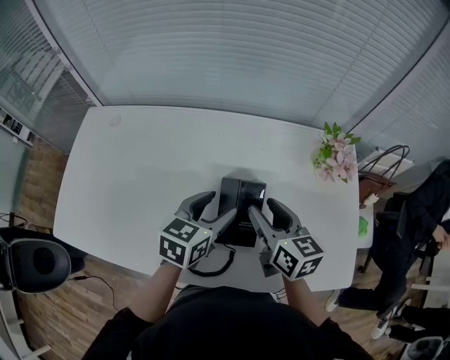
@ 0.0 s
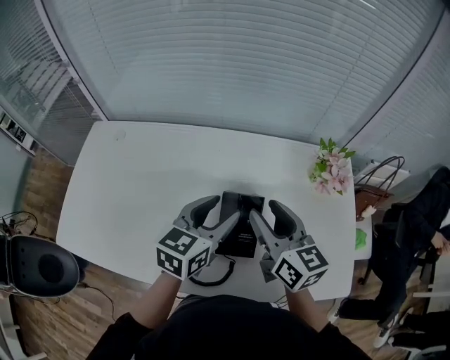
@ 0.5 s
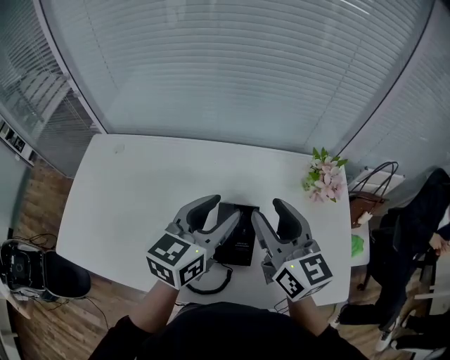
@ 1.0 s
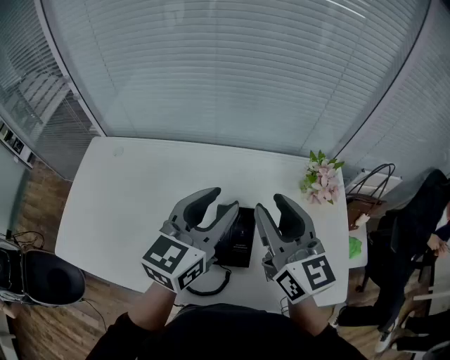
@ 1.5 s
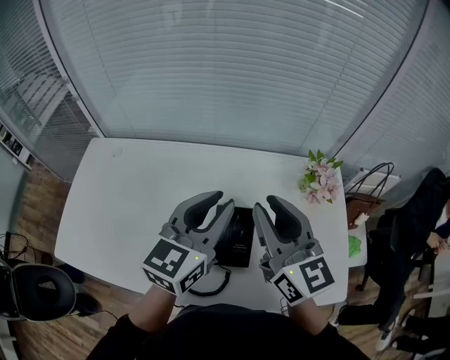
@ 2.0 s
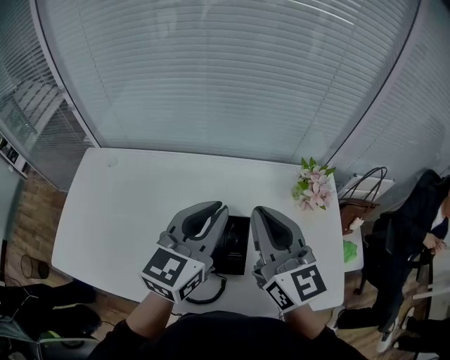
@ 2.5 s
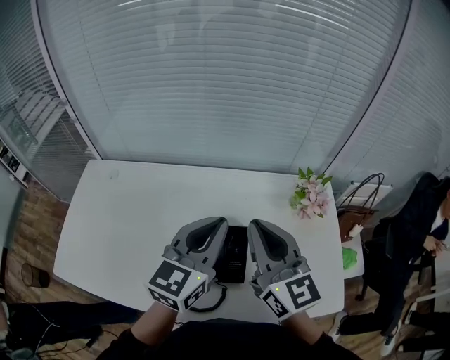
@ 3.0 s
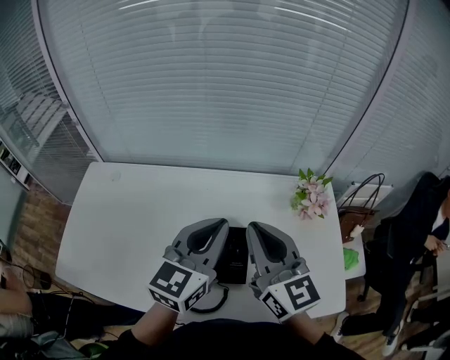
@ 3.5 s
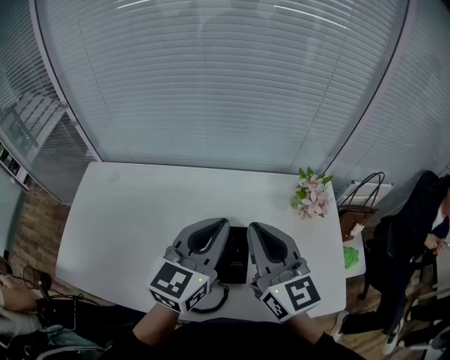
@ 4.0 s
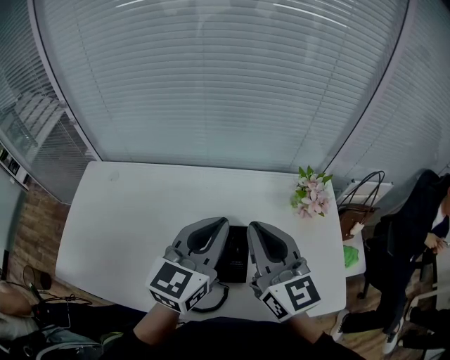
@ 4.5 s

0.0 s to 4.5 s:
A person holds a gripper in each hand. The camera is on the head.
0.0 to 2.0 s: Both grippers move upward, roughly 20 cm. The right gripper changes its angle by some 30 degrees, and closes, while the left gripper turns by some 30 degrees, and closes.
2.0 to 4.5 s: The right gripper closes up.

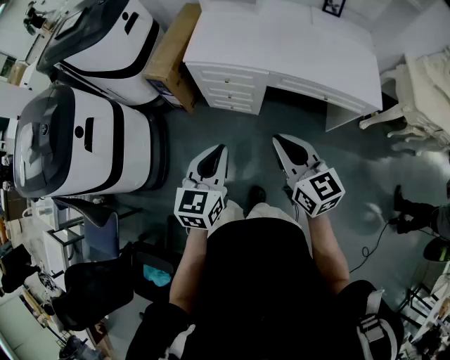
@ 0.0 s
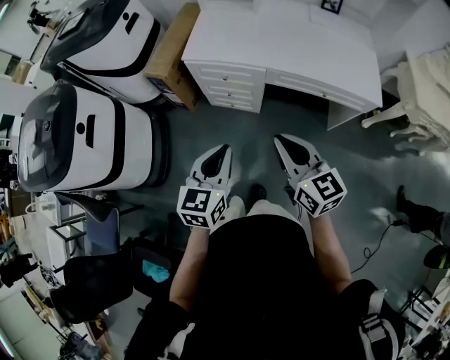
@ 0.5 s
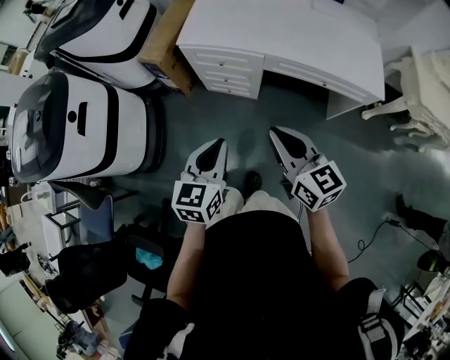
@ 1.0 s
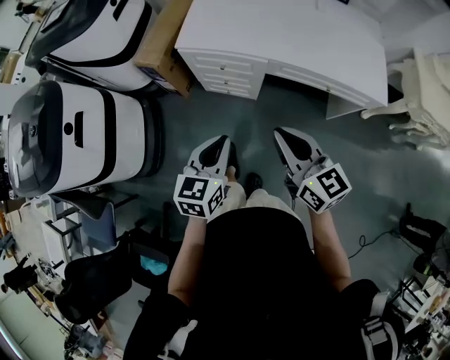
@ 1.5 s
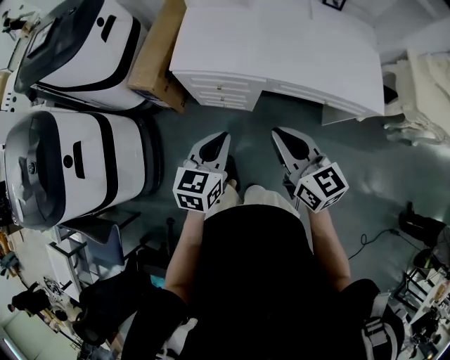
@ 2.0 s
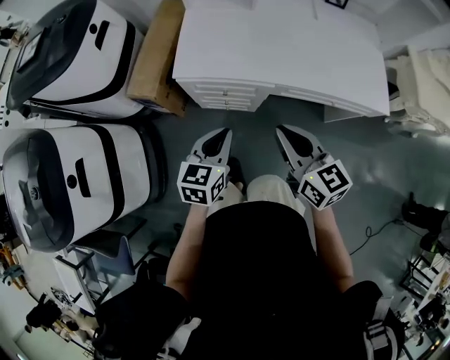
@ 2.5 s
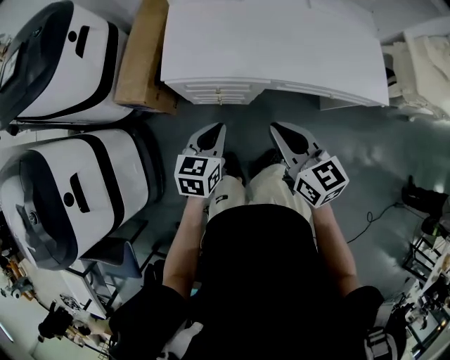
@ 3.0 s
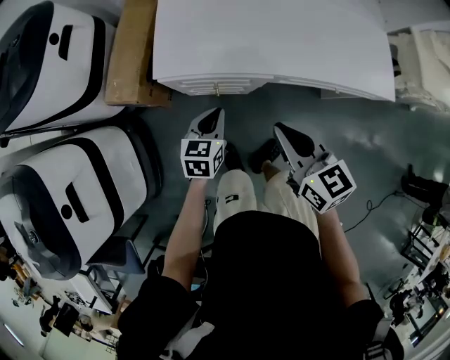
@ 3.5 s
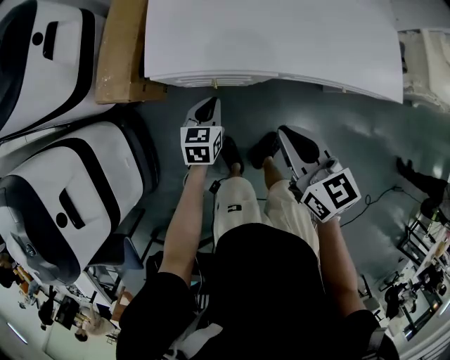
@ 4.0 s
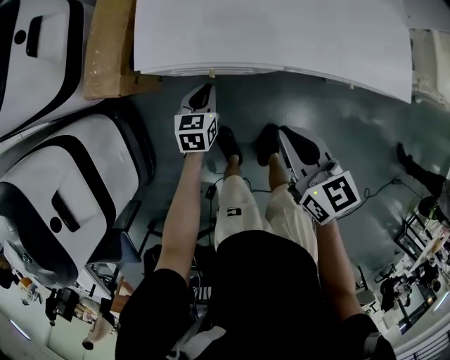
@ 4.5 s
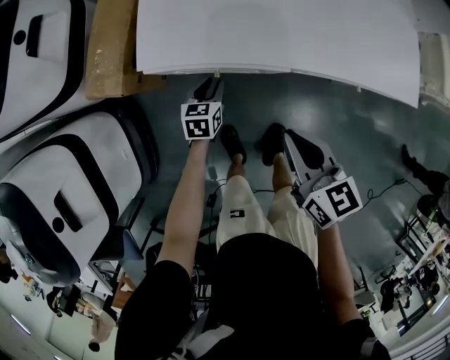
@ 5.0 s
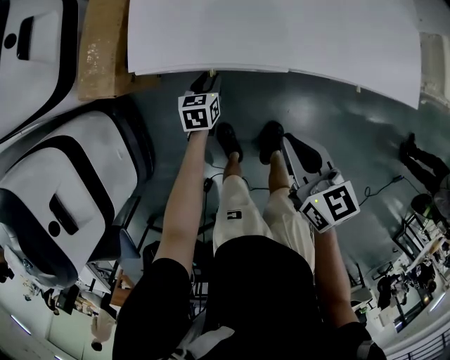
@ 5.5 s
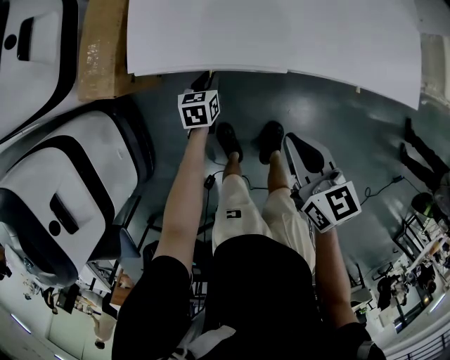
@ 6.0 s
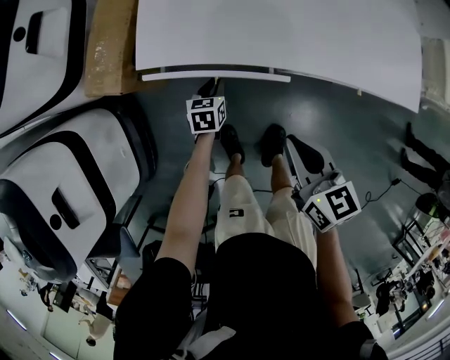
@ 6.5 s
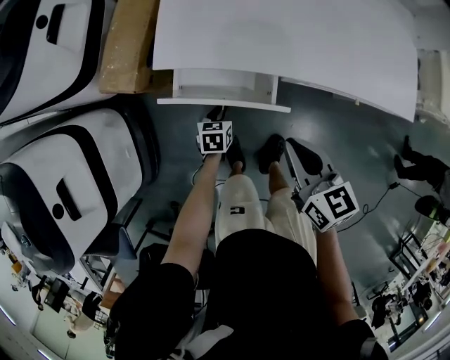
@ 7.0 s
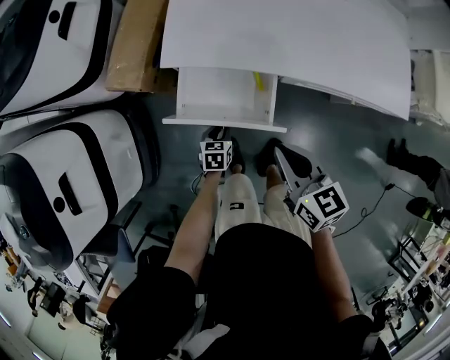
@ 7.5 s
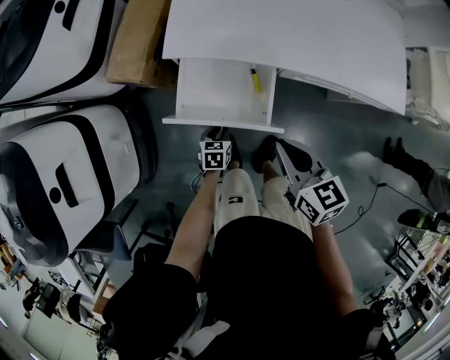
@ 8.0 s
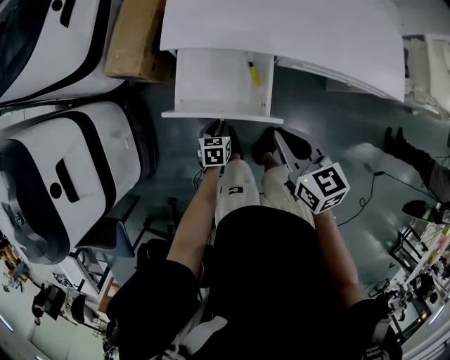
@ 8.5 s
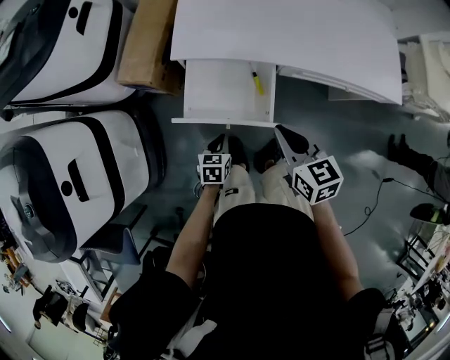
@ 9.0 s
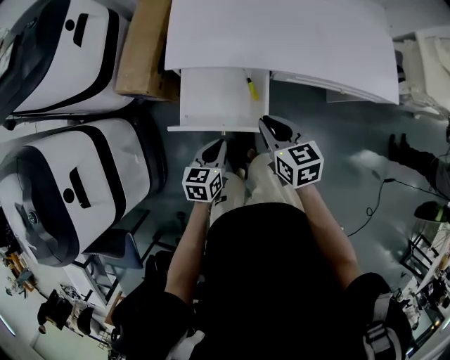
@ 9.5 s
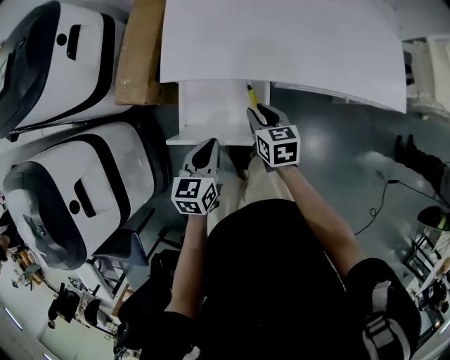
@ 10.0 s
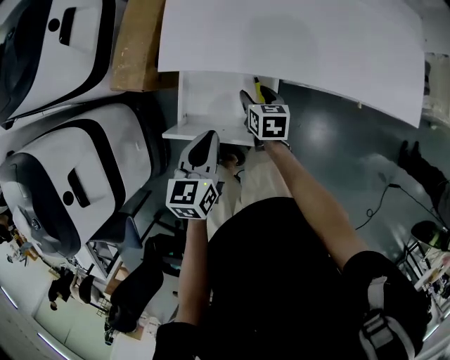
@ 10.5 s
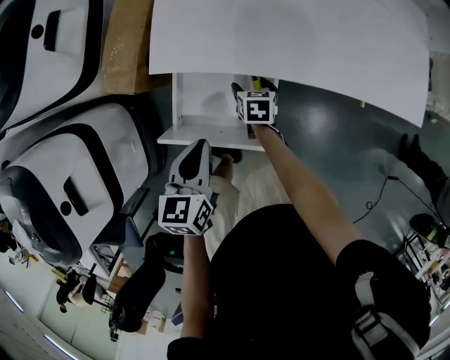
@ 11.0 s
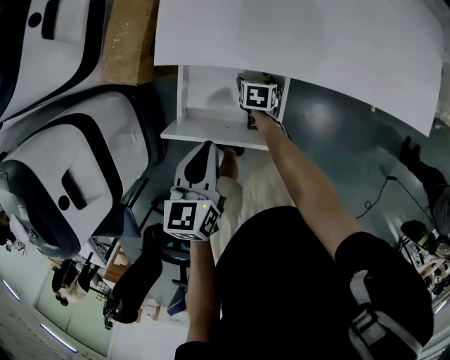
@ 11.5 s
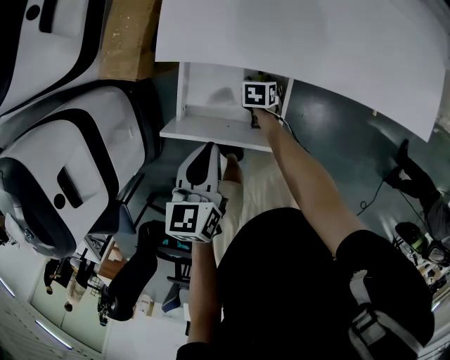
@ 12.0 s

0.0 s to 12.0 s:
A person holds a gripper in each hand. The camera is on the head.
0.0 to 2.0 s: Both grippers move forward, roughly 15 cm.
2.0 to 4.0 s: The right gripper goes about 20 cm forward, downward and to the left, while the left gripper travels downward and forward by roughly 30 cm.
4.0 to 6.0 s: The right gripper is displaced downward by approximately 10 cm; the left gripper travels downward and forward by approximately 15 cm.
6.0 to 8.0 s: The left gripper moves backward, approximately 20 cm. Meanwhile the right gripper shifts some 10 cm backward and to the left.
8.0 to 10.0 s: The right gripper is displaced forward and downward by about 15 cm, while the left gripper is displaced upward by approximately 25 cm.
10.0 to 12.0 s: The right gripper shifts approximately 25 cm downward, rotates about 30 degrees, and opens up.

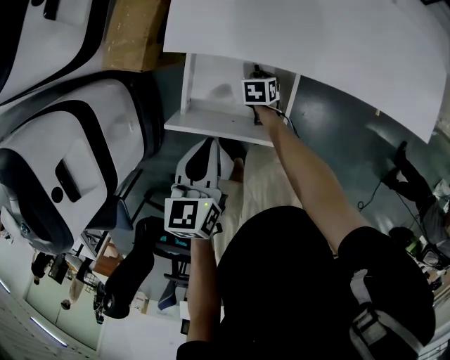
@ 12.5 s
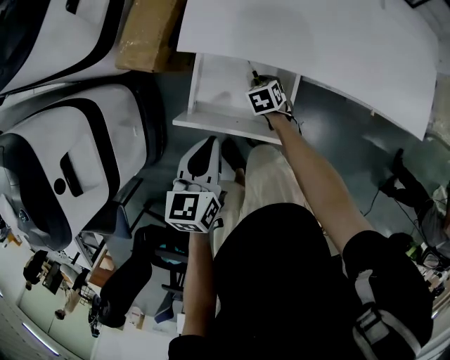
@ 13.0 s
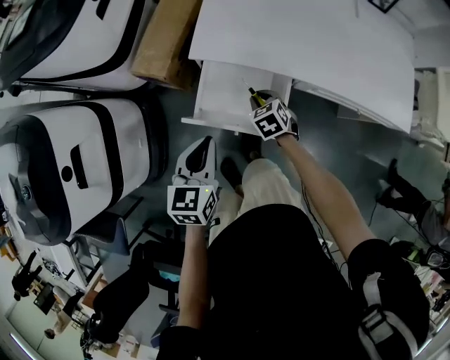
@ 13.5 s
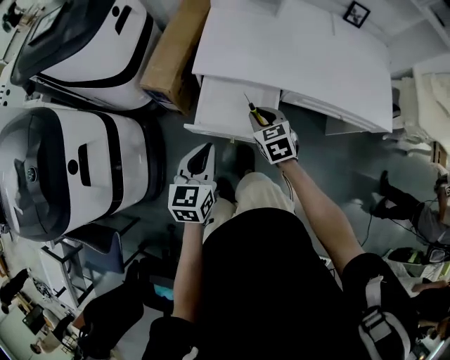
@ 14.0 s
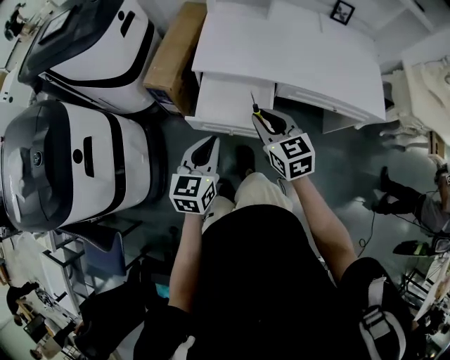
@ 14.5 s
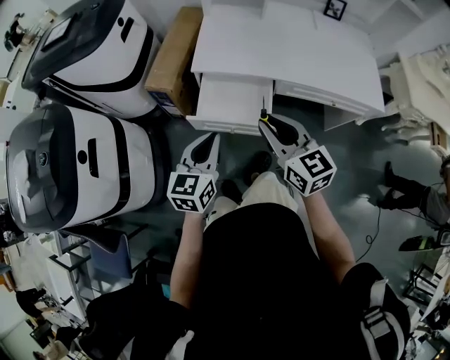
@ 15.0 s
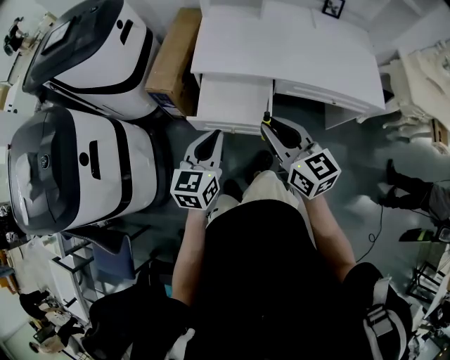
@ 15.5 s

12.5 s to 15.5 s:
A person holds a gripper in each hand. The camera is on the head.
12.5 to 14.0 s: The left gripper travels backward and upward by roughly 20 cm, and rotates about 20 degrees, while the right gripper goes about 40 cm upward and backward, and rotates roughly 40 degrees.
14.0 to 15.5 s: The left gripper goes some 10 cm upward and backward; the right gripper shifts approximately 25 cm upward and backward, and angles its fingers upward, by roughly 30 degrees.

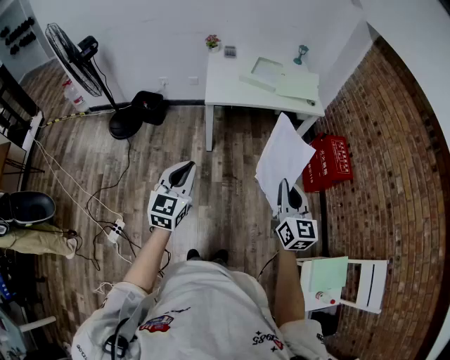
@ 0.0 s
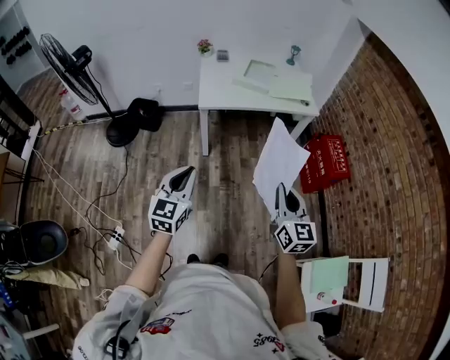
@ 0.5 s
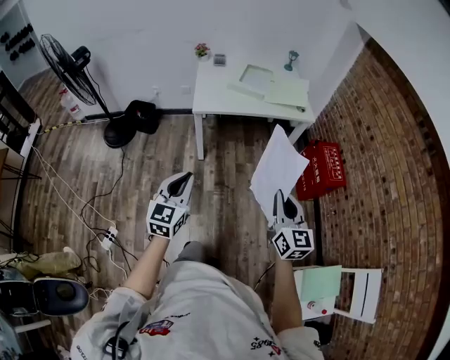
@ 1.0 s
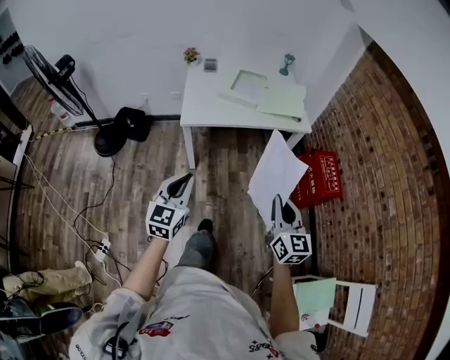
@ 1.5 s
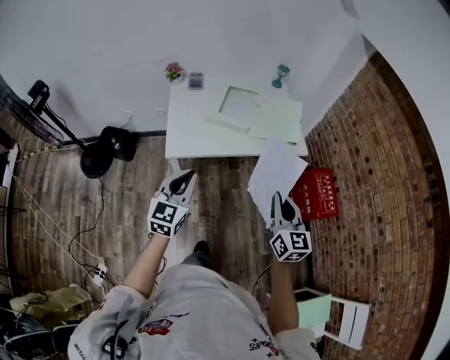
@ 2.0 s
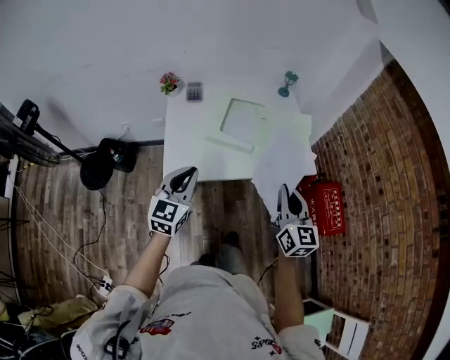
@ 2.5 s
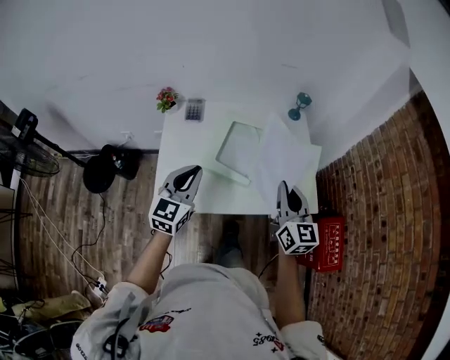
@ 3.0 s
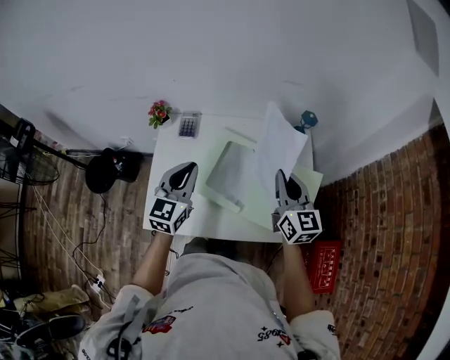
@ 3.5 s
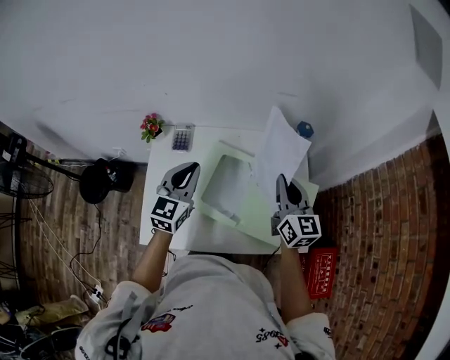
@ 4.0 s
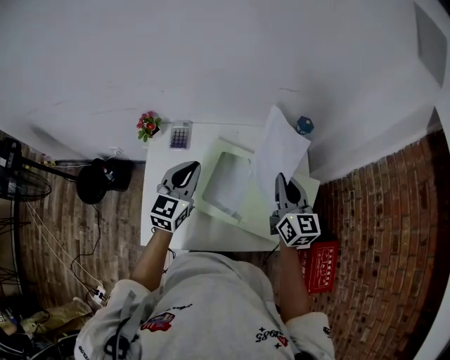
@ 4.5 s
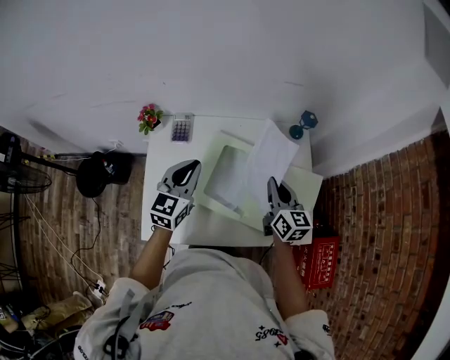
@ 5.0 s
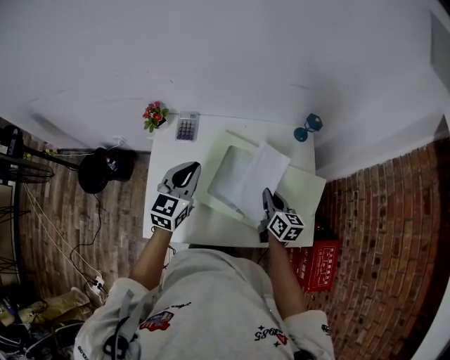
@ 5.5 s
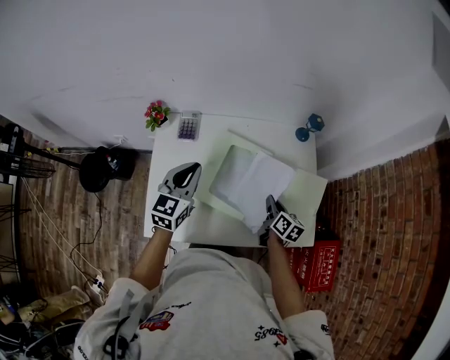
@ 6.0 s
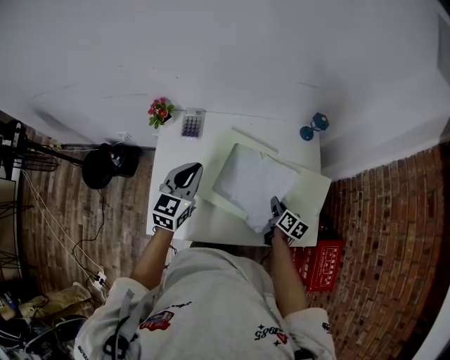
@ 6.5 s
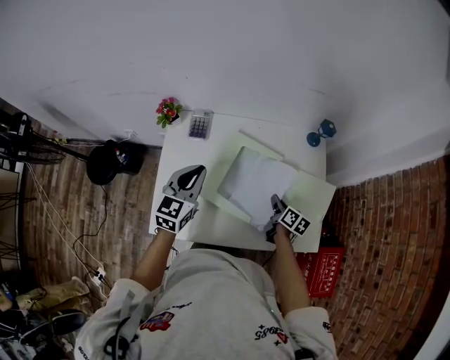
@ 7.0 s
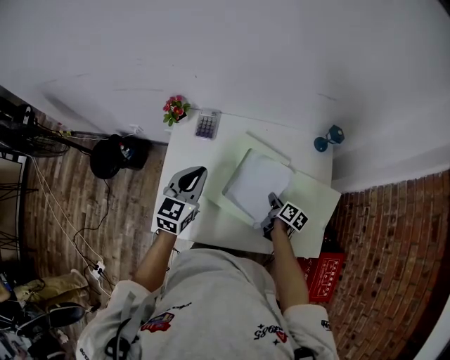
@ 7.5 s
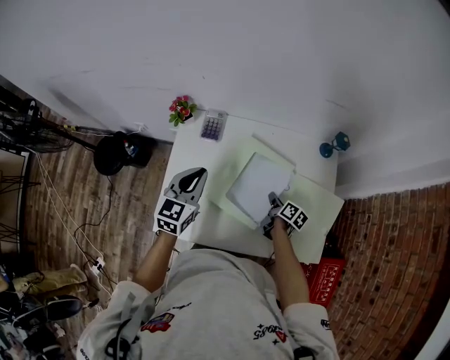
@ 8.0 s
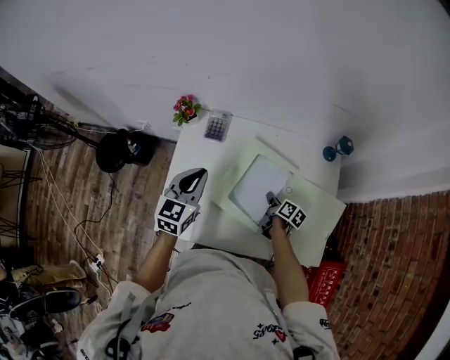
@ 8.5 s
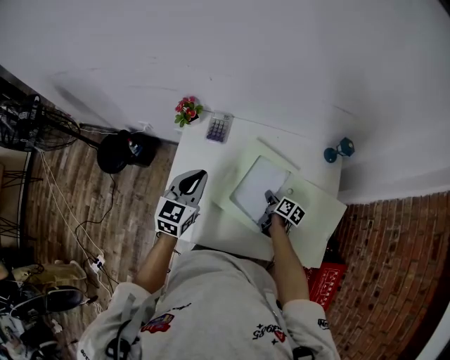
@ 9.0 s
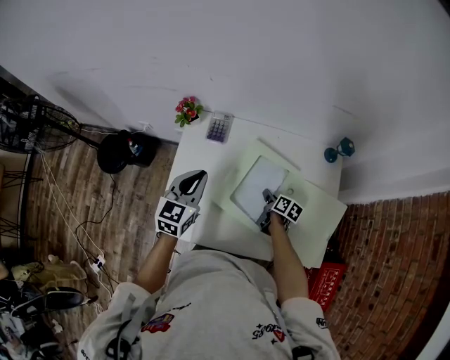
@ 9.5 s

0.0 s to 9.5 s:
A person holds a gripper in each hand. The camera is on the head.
0.0 to 2.0 s: Both grippers move forward, some 35 cm.
2.0 to 4.0 s: Both grippers are carried forward, roughly 60 cm.
4.0 to 5.5 s: The right gripper goes approximately 20 cm downward, and turns by roughly 30 degrees. The left gripper changes place by some 5 cm.
5.5 to 7.5 s: The right gripper shifts about 15 cm downward, and rotates approximately 30 degrees.
7.5 to 9.5 s: The right gripper heads to the left, covering about 5 cm.
